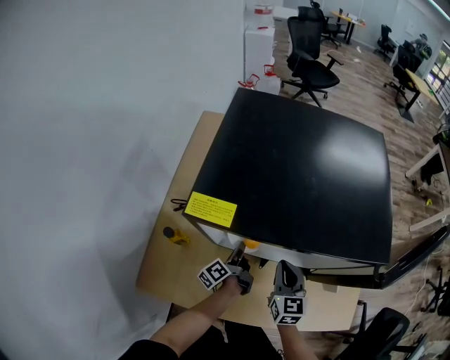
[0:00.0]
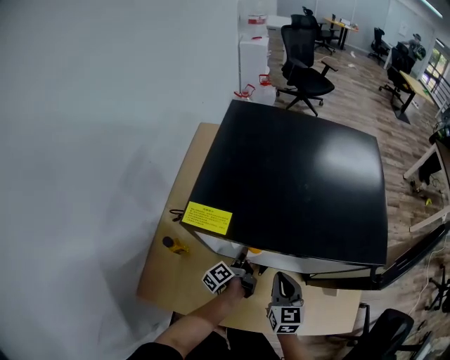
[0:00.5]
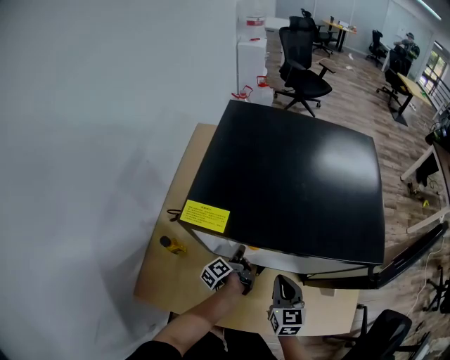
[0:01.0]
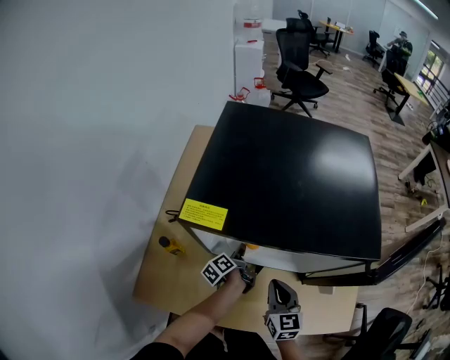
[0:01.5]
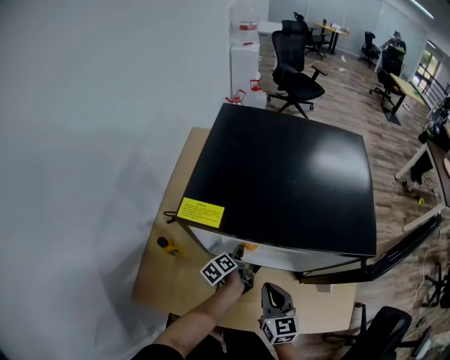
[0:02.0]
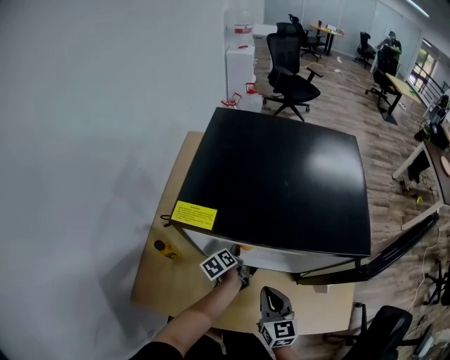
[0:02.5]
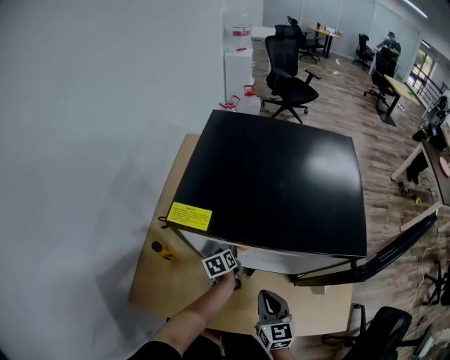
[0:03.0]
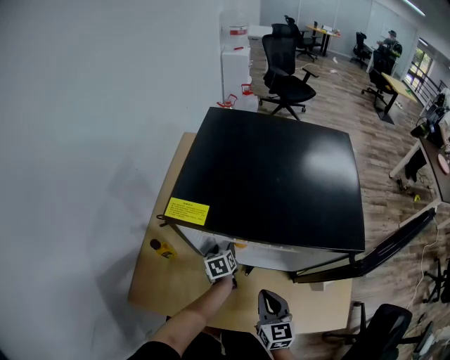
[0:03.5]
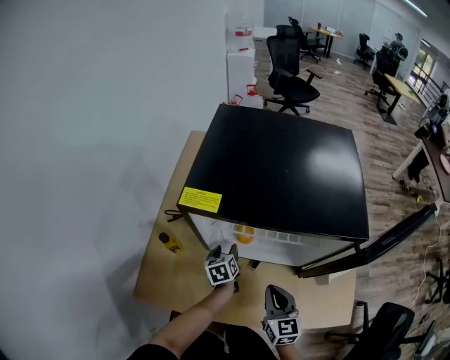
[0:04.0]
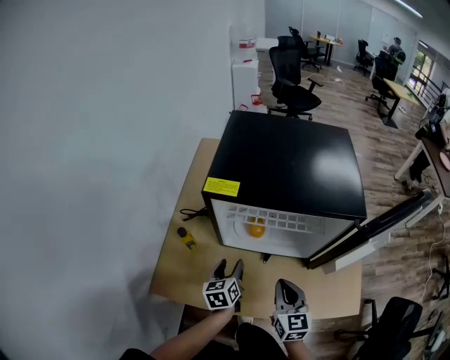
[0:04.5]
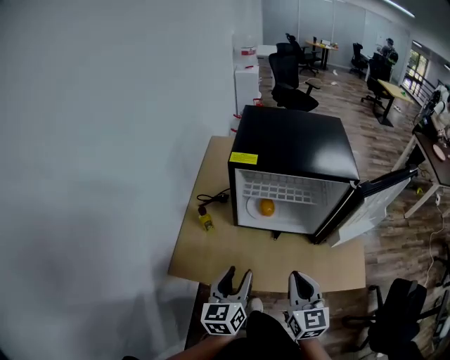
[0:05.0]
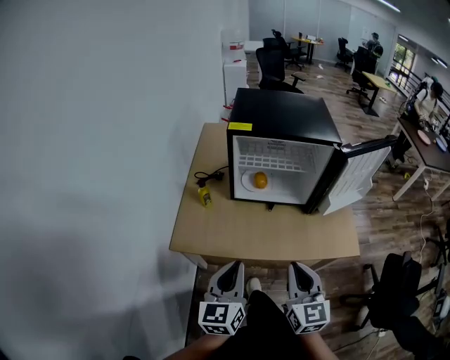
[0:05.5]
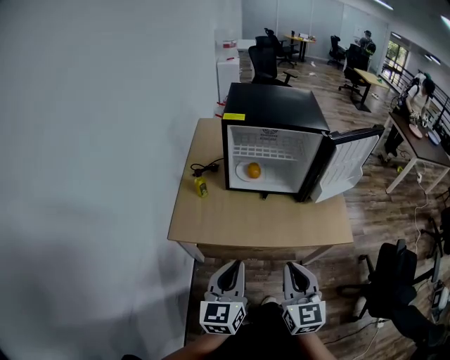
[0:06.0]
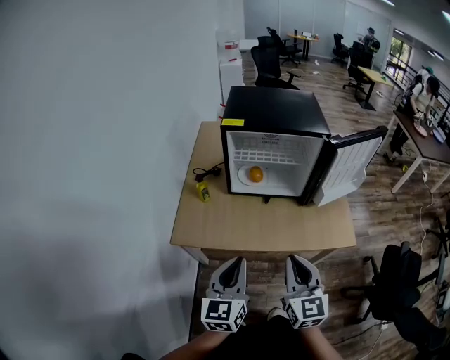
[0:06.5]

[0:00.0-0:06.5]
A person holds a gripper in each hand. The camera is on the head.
0:00.0 to 0:02.0: The right gripper is displaced backward by approximately 5 cm; the left gripper changes its angle by some 20 degrees, and opens up.
0:02.0 to 0:04.5: The left gripper shifts approximately 20 cm backward, upward and to the left, and twists roughly 40 degrees clockwise, seen from behind; the right gripper is displaced backward and upward by approximately 10 cm.
0:04.5 to 0:06.5: The two grippers go approximately 35 cm backward and upward. The left gripper turns by some 30 degrees, and closes.

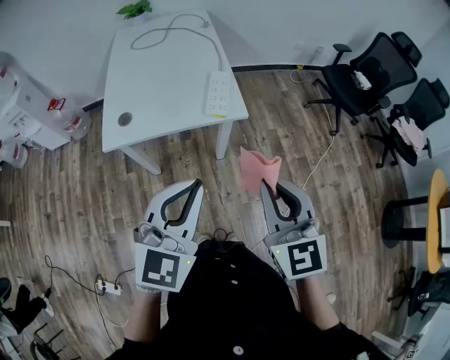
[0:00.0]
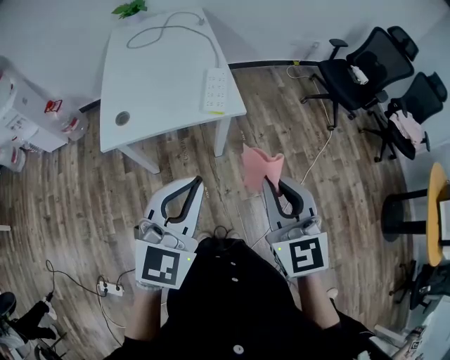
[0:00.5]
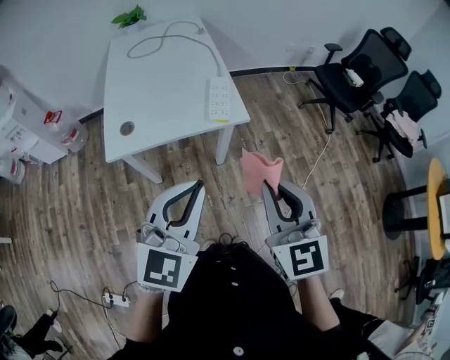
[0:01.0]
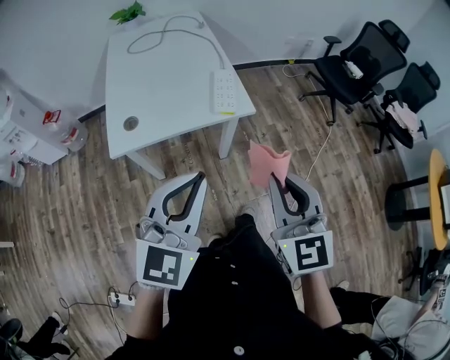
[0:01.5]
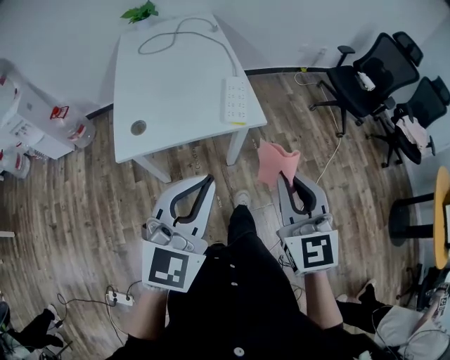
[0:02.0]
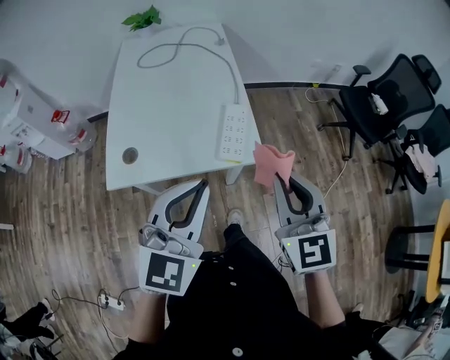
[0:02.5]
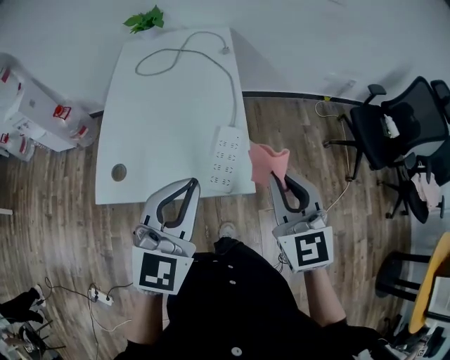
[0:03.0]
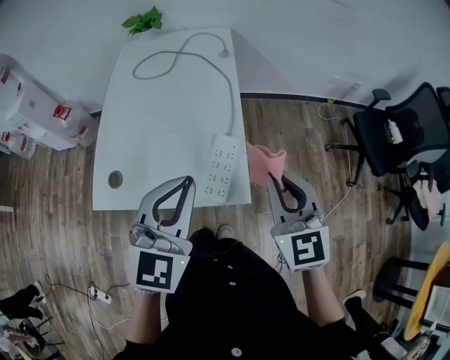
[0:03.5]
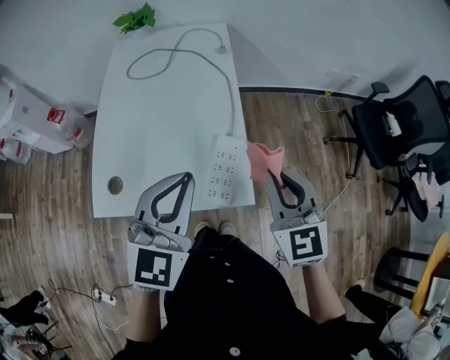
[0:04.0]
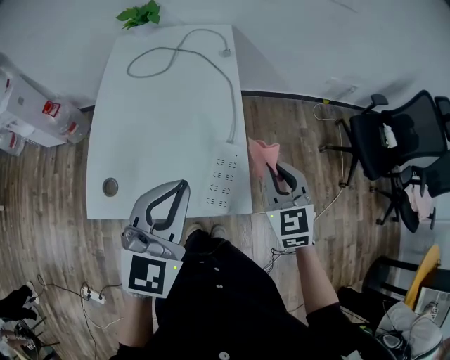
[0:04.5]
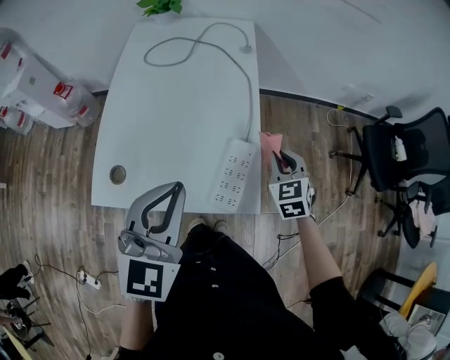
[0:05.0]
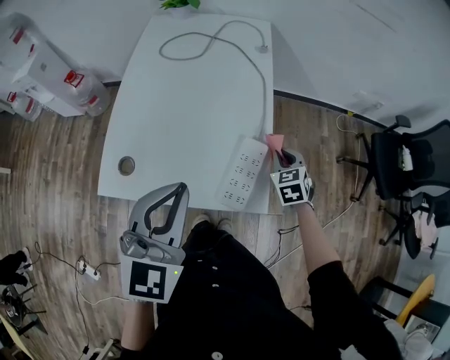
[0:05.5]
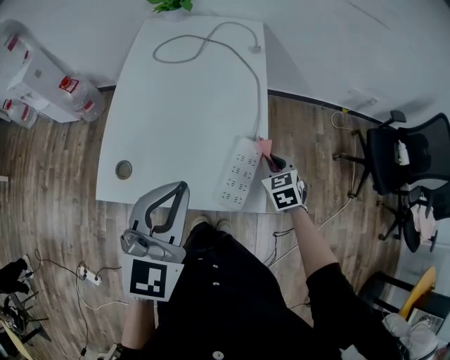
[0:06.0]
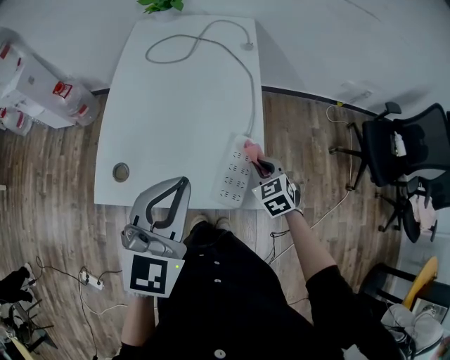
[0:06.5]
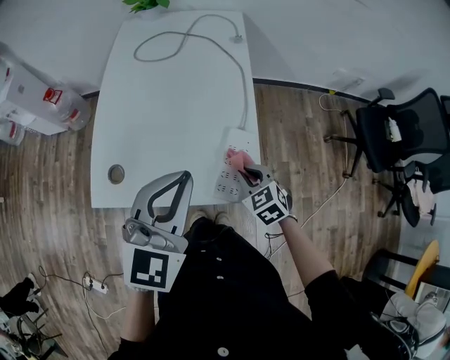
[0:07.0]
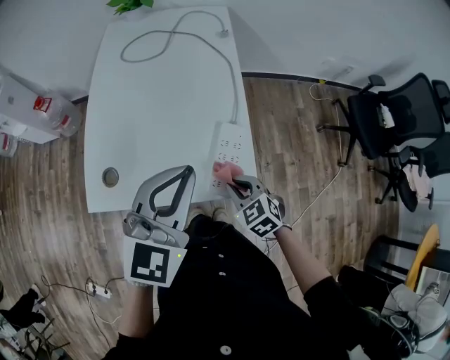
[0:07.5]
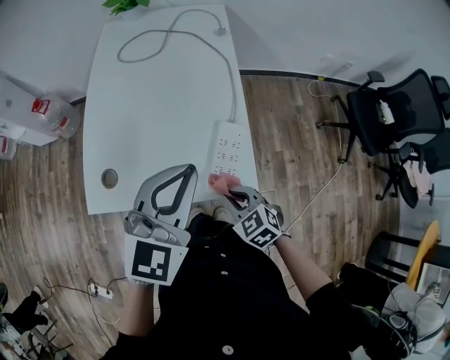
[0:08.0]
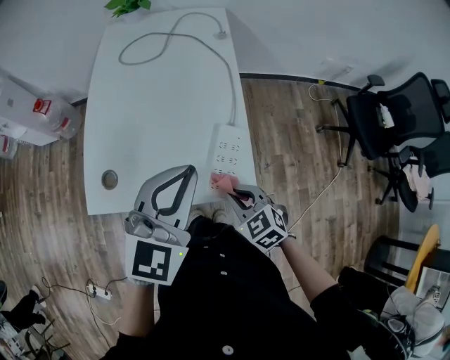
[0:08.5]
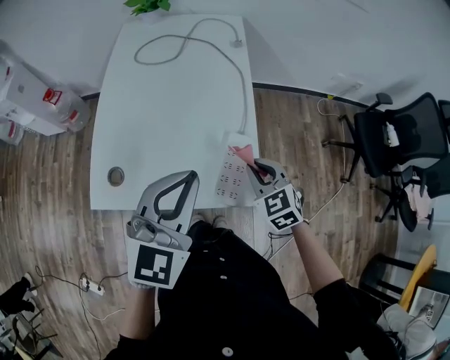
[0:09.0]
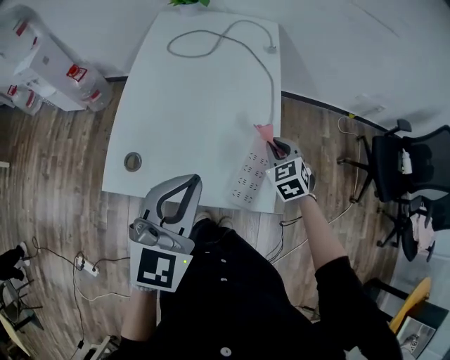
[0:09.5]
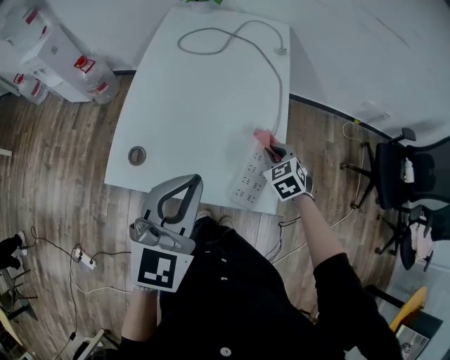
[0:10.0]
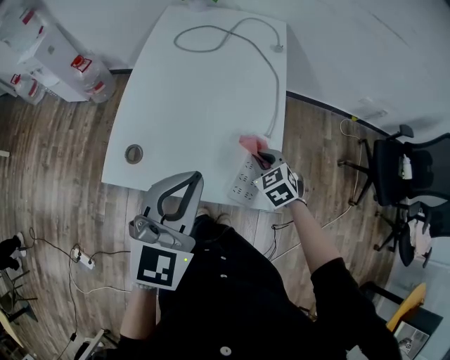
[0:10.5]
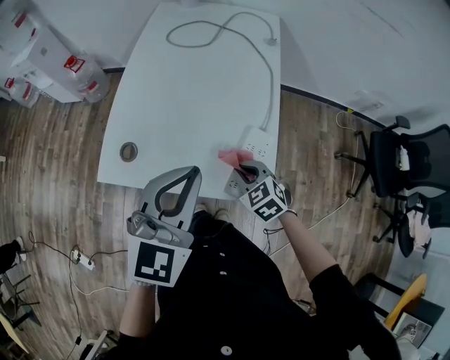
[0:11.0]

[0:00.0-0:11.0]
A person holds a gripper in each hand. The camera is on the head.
0:00.0 to 0:02.0: The left gripper heads to the left, covering some 5 cm; the right gripper moves some 5 cm.
0:02.0 to 0:03.5: The grippers both shift forward by some 35 cm.
0:03.5 to 0:05.5: The left gripper goes some 10 cm to the left; the right gripper moves downward and forward, approximately 30 cm, and swivels about 30 degrees.
0:05.5 to 0:07.5: The right gripper travels backward and to the left by about 20 cm.
0:07.5 to 0:09.0: The right gripper is displaced forward and upward by some 10 cm.
0:09.0 to 0:11.0: The right gripper travels to the left and downward by about 10 cm, and moves roughly 10 cm forward and comes back.

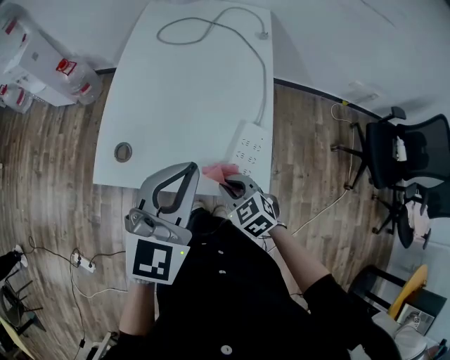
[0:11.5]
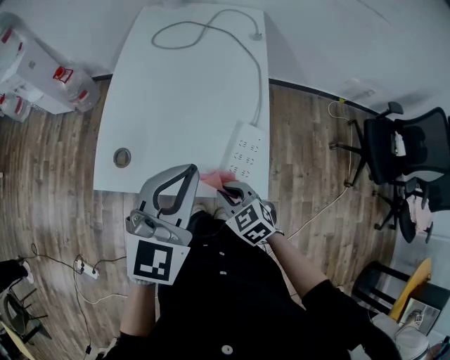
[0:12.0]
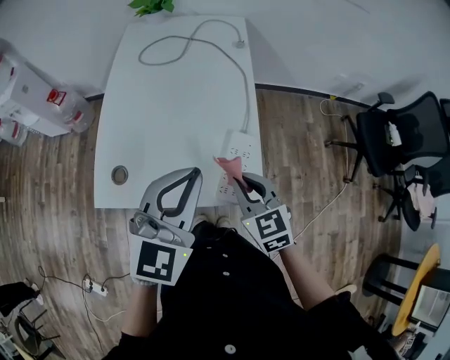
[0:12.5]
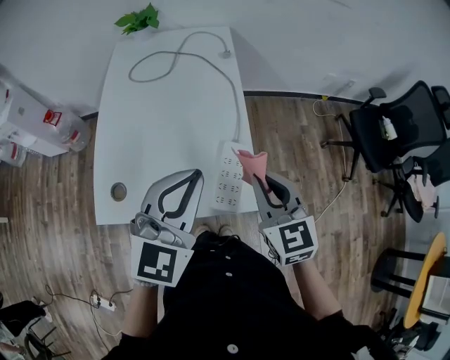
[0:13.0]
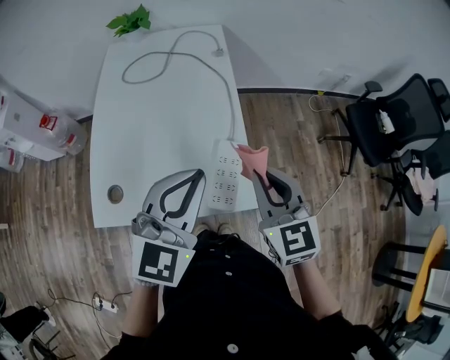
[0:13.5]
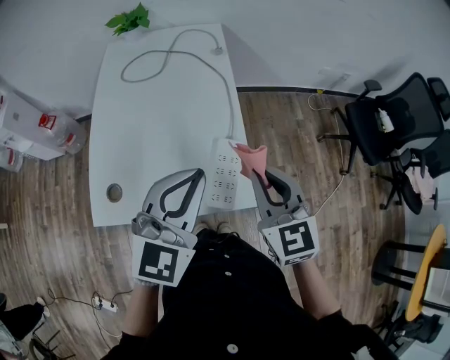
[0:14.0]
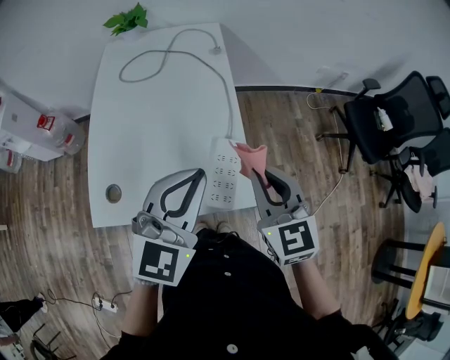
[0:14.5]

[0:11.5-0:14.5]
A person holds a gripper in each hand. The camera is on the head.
0:11.5 to 0:13.0: The right gripper goes some 20 cm upward and to the right, and swivels about 40 degrees, while the left gripper heads to the right, covering roughly 5 cm.
0:13.0 to 0:14.5: There are only small adjustments of the grippers.

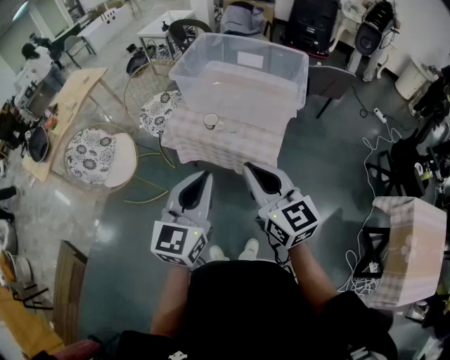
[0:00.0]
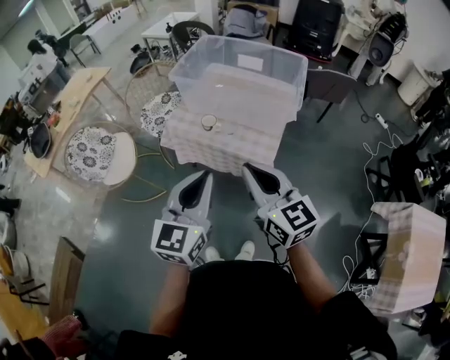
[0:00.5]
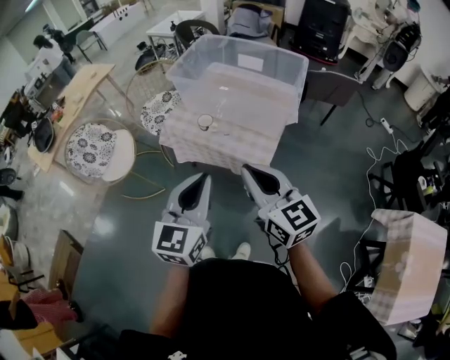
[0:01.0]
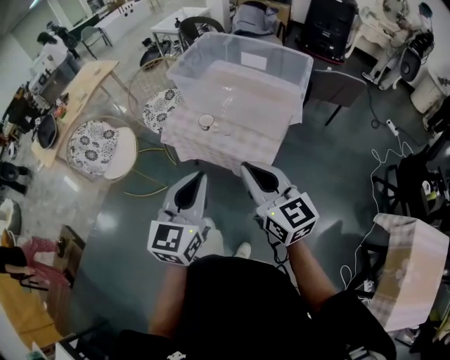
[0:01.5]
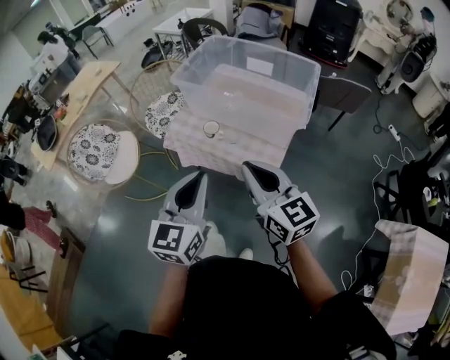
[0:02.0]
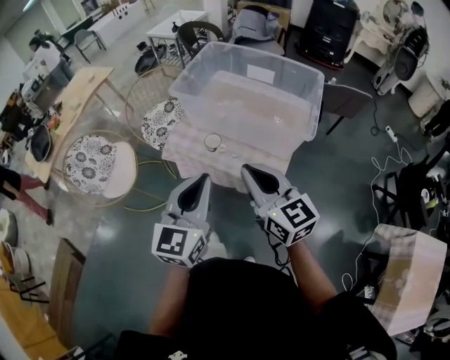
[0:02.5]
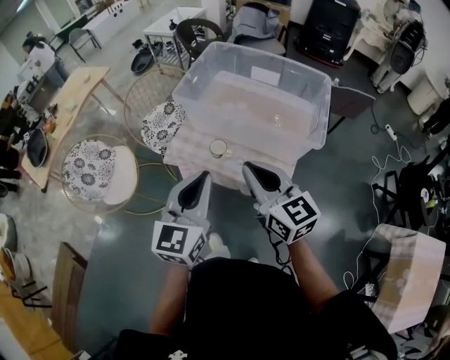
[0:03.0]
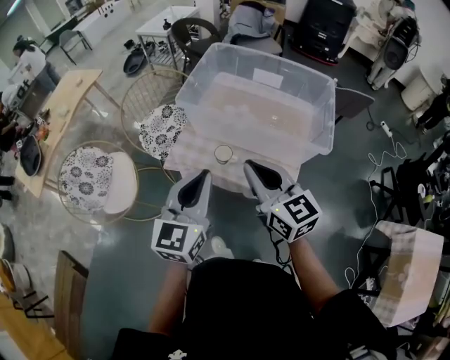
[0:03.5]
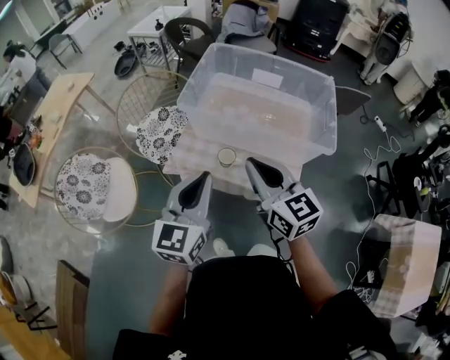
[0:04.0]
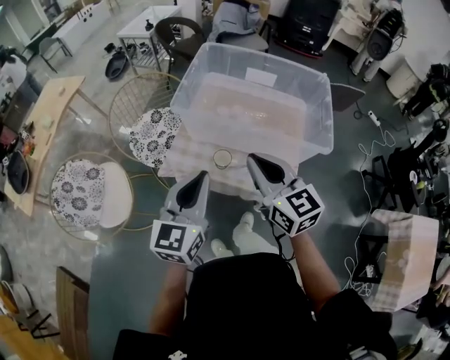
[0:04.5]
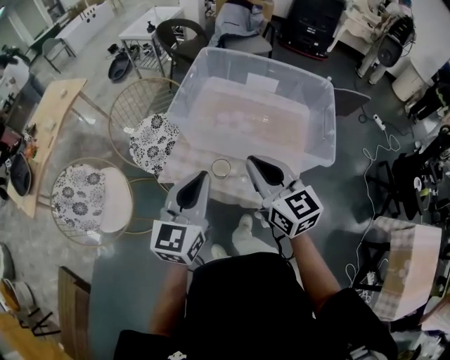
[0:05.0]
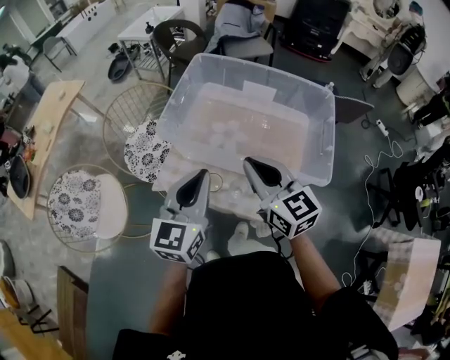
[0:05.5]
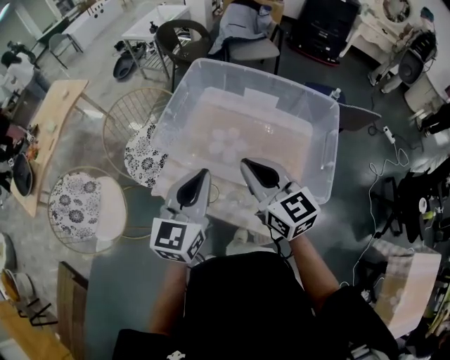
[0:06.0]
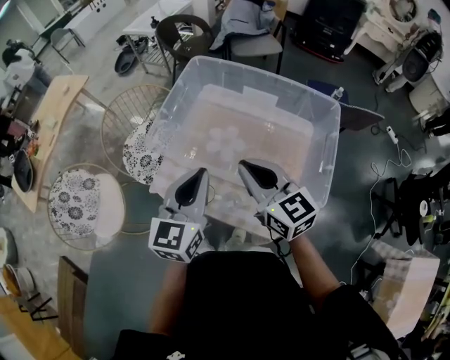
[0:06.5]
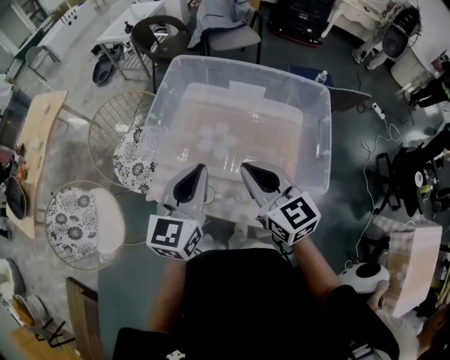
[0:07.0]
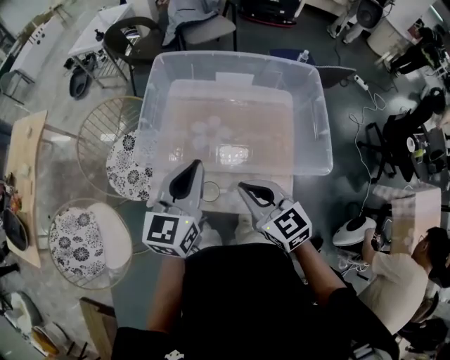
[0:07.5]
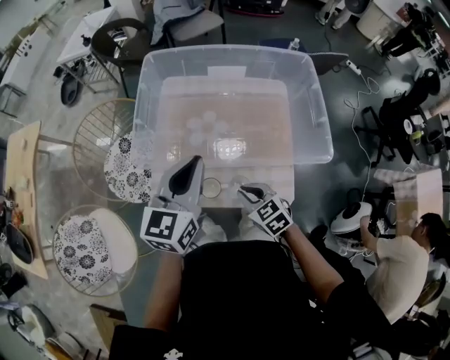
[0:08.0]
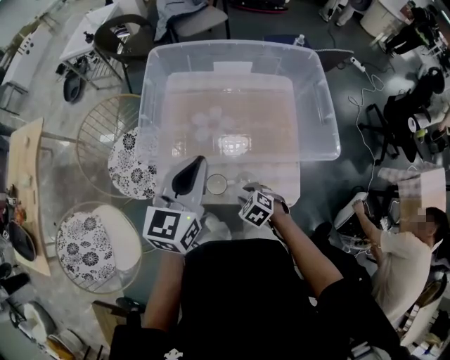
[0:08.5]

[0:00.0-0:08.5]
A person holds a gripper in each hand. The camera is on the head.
0:00.0 to 0:02.0: The right gripper heads forward and to the right, covering about 10 cm. The left gripper moves forward, roughly 5 cm.
0:02.0 to 0:04.0: The two grippers go approximately 25 cm forward and to the left.
0:04.0 to 0:06.5: Both grippers travel together forward and to the right, approximately 20 cm.
0:06.5 to 0:08.5: The left gripper ends up approximately 5 cm from where it was, and changes its angle by roughly 20 degrees. Meanwhile the right gripper is displaced downward by some 35 cm, angles its fingers downward, by roughly 60 degrees, and opens up.
